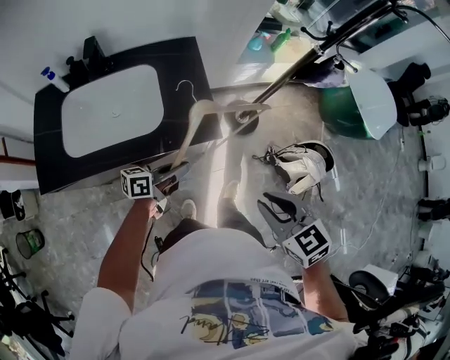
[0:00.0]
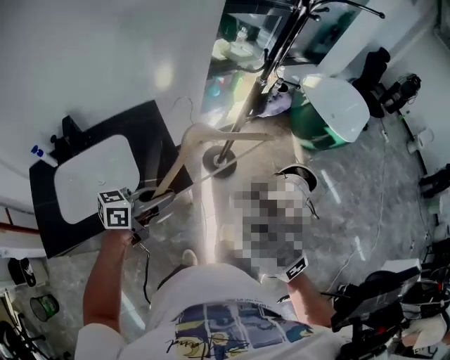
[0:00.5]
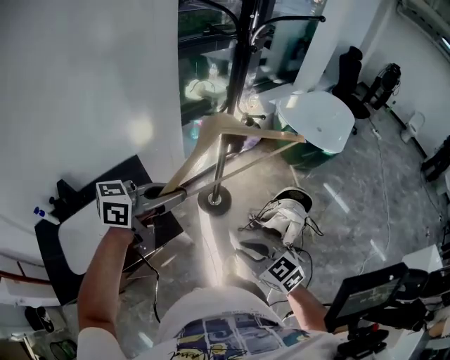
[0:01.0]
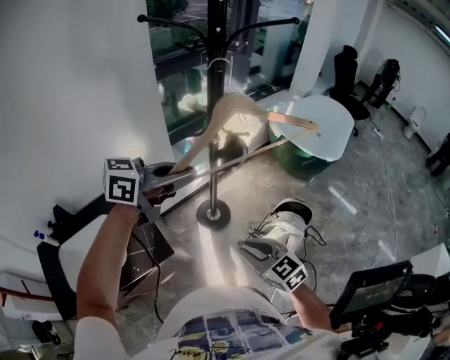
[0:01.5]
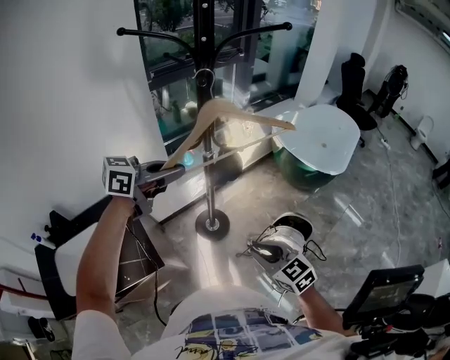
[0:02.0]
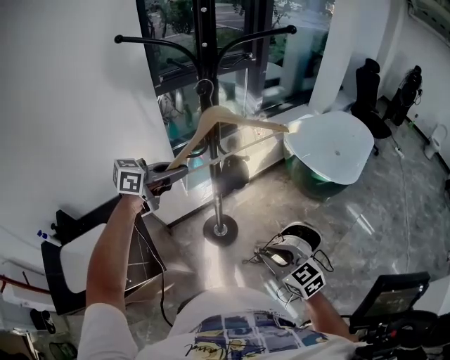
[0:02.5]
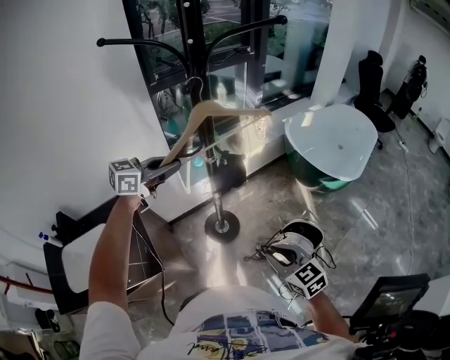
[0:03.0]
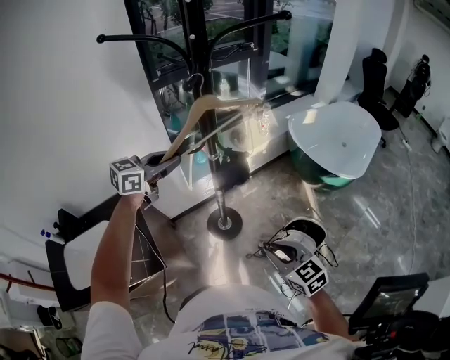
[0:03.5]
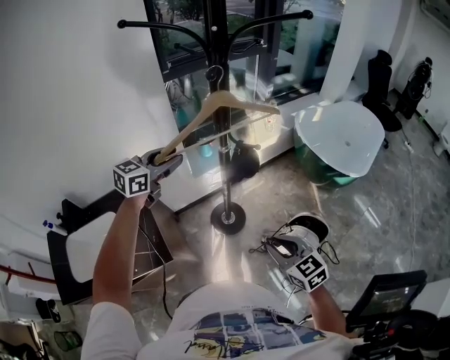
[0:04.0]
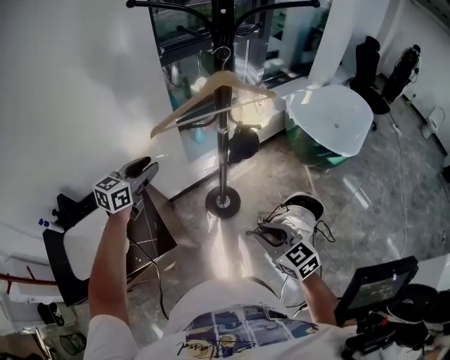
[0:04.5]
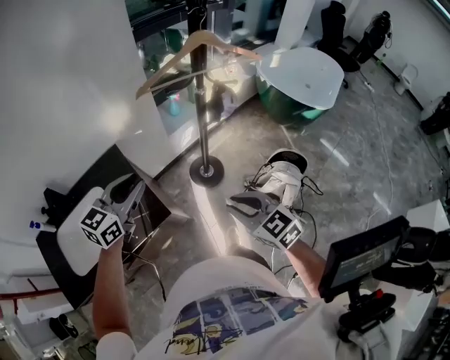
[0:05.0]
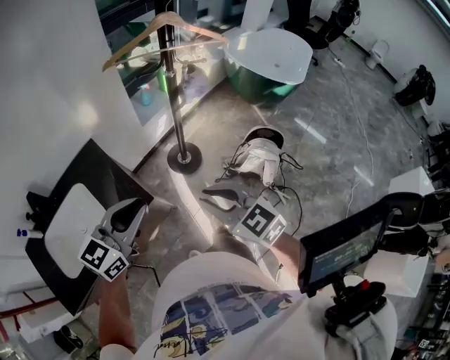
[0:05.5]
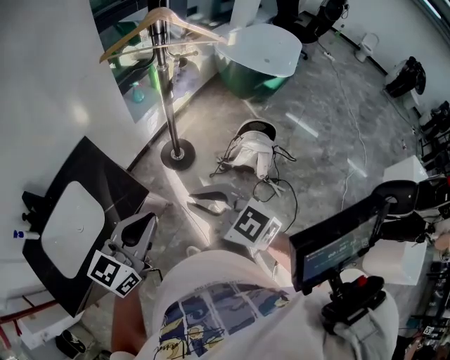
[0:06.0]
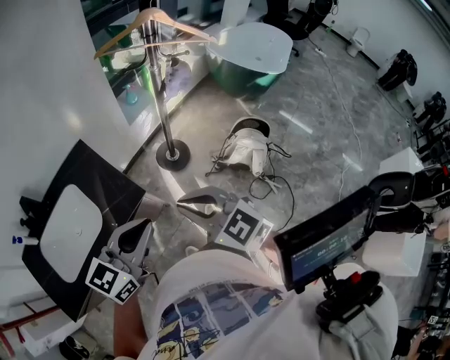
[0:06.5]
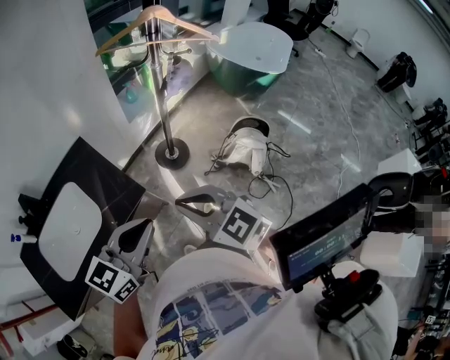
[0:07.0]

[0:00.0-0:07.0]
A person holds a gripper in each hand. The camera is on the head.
0:00.0 to 0:02.0: The right gripper heads forward and to the right, covering roughly 30 cm. Meanwhile the left gripper goes some 50 cm upward, forward and to the right, and rotates about 50 degrees.
0:02.0 to 0:03.5: The right gripper shifts approximately 5 cm forward. Meanwhile the left gripper shifts some 10 cm forward and downward, and rotates some 20 degrees.
0:03.5 to 0:05.0: The left gripper is displaced backward and to the left by about 25 cm; the right gripper travels to the left and backward by roughly 20 cm.
0:05.0 to 0:07.0: The right gripper is displaced backward, to the left and upward by roughly 15 cm, while the left gripper goes approximately 20 cm backward, and closes.

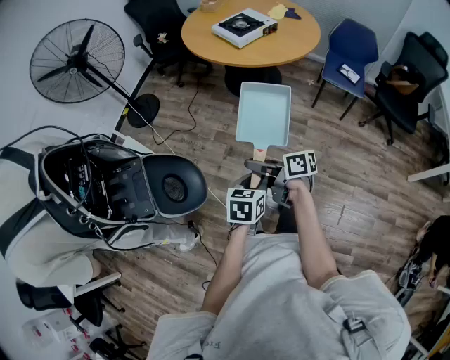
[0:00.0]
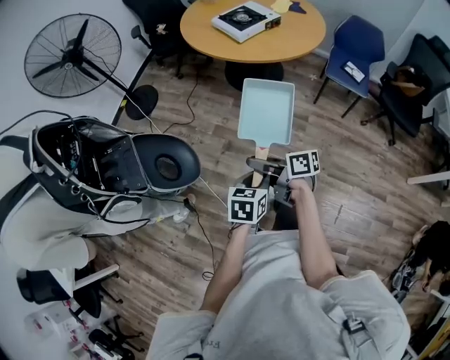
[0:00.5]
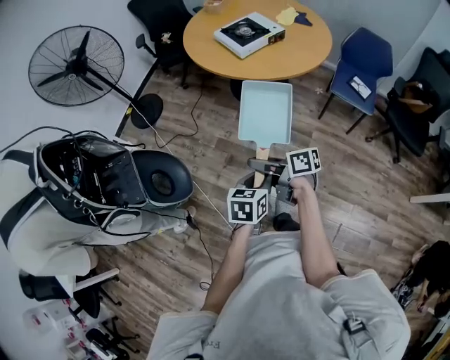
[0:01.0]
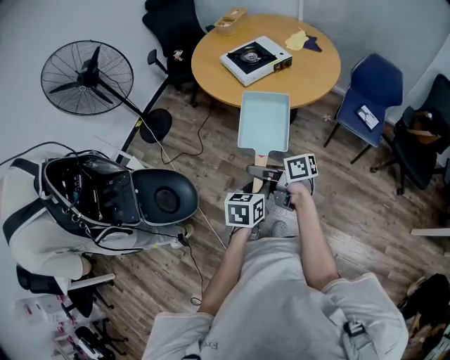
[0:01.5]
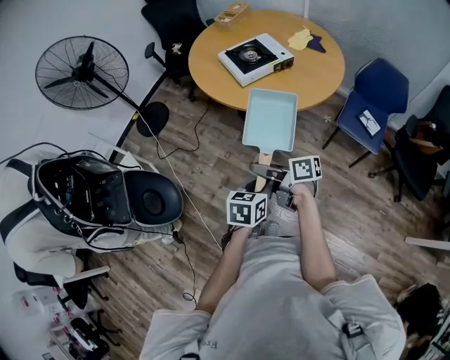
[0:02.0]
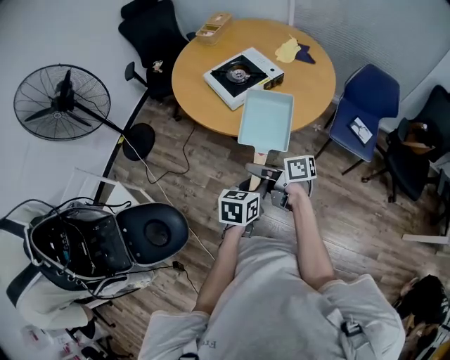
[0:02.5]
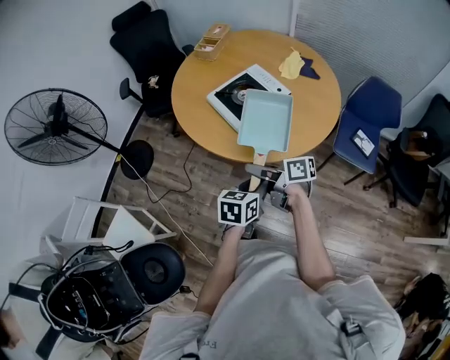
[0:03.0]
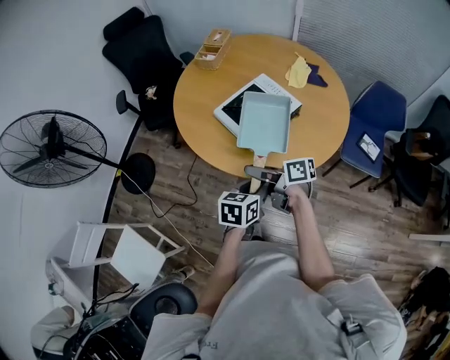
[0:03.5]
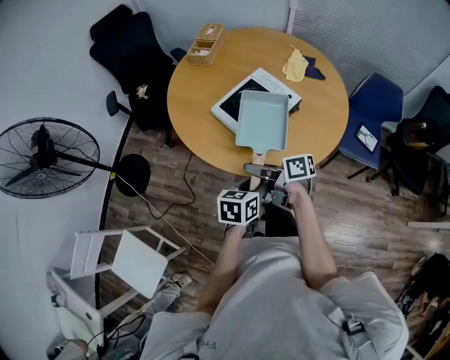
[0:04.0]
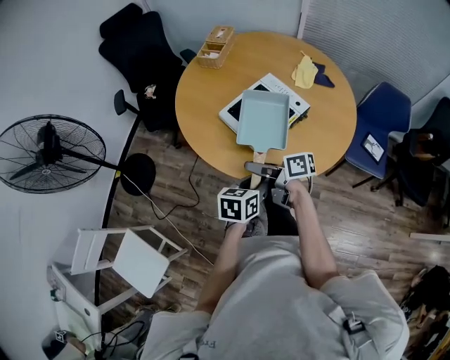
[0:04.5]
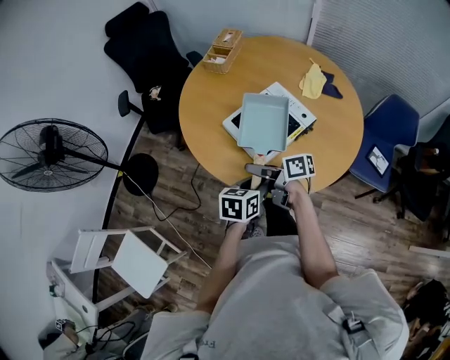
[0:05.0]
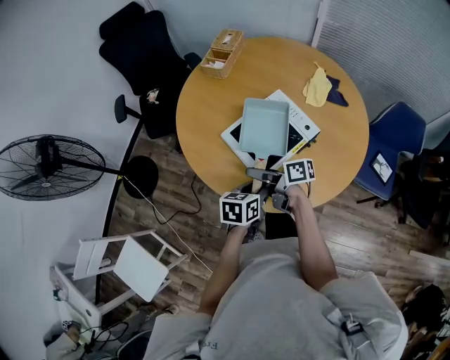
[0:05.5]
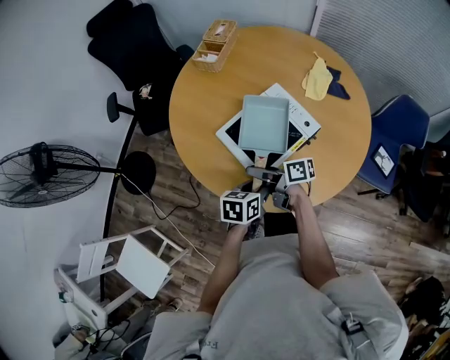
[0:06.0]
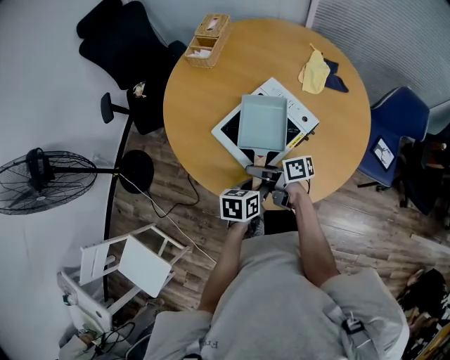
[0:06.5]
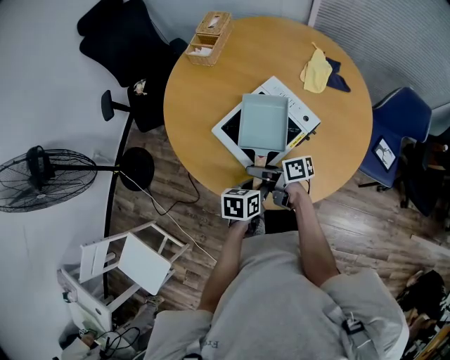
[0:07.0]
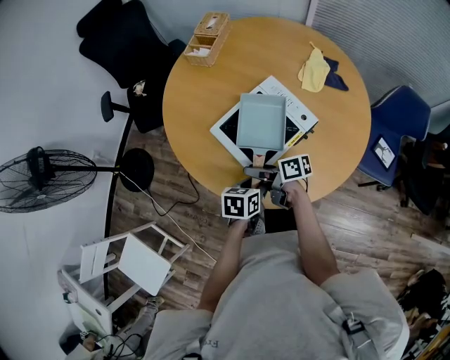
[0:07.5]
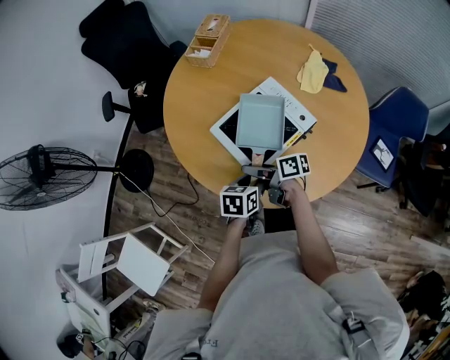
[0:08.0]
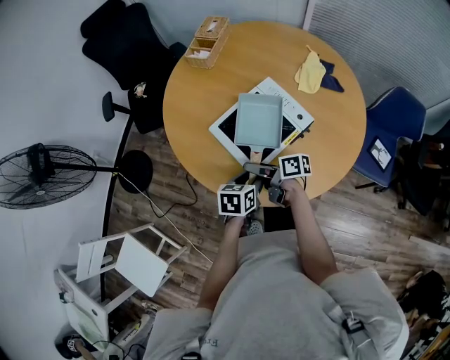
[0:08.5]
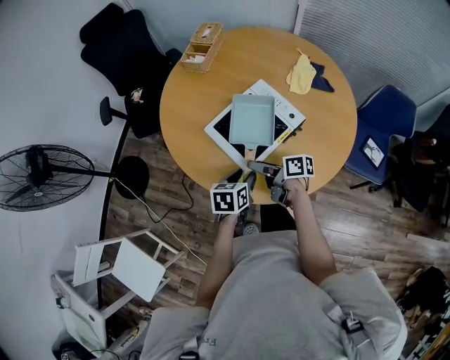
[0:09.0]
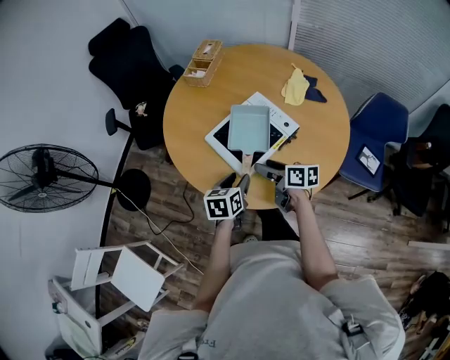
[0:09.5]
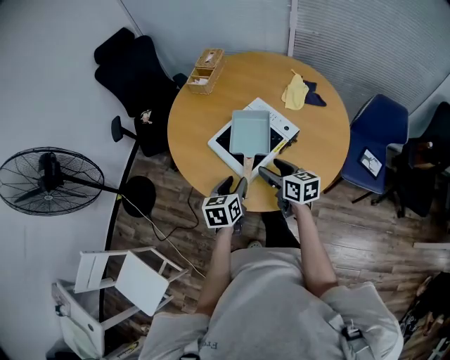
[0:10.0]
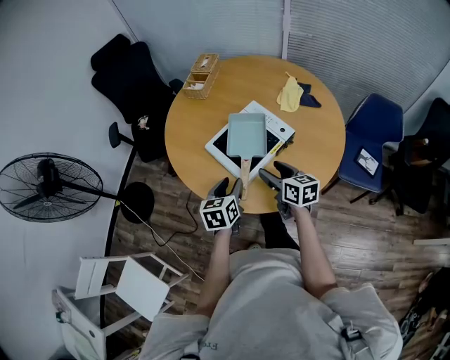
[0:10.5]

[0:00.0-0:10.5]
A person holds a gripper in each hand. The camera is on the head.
0:00.0 to 0:02.0: The right gripper moves forward and to the right, approximately 30 cm; the left gripper travels to the right and forward by roughly 30 cm.
0:02.0 to 0:04.0: Both grippers move forward, some 35 cm.
0:04.0 to 0:06.5: The grippers both shift forward and downward by some 15 cm.
0:06.5 to 0:08.5: There are only small adjustments of the grippers.
0:08.5 to 0:10.5: The right gripper shifts about 15 cm to the right and upward, and turns by approximately 50 degrees; the left gripper is displaced upward by some 10 cm.

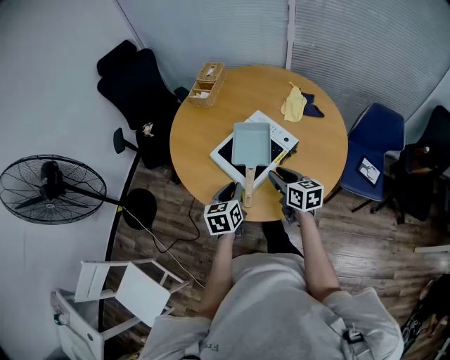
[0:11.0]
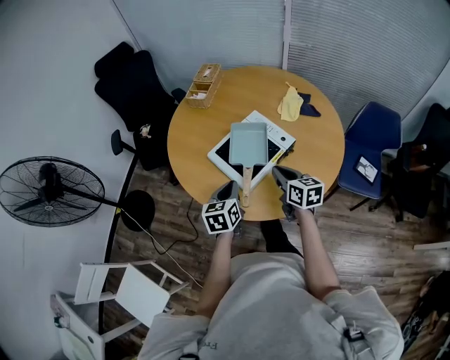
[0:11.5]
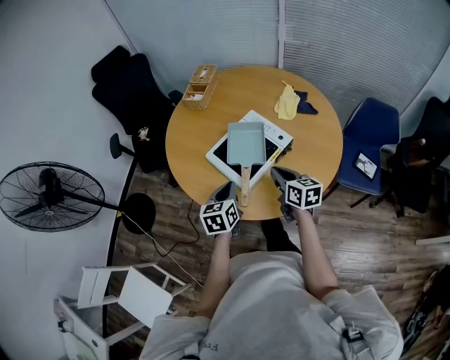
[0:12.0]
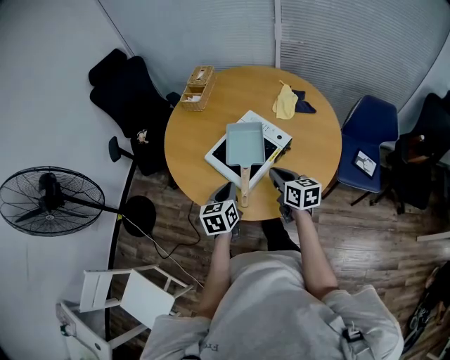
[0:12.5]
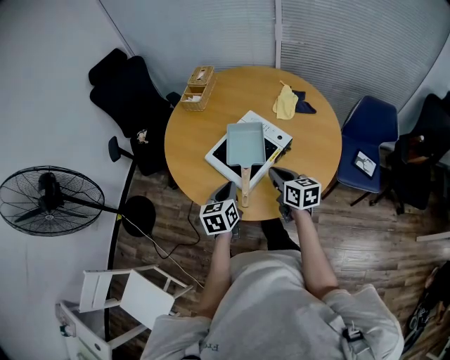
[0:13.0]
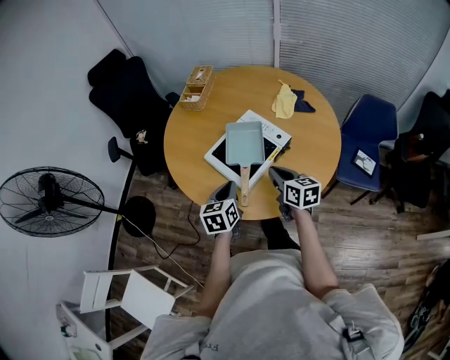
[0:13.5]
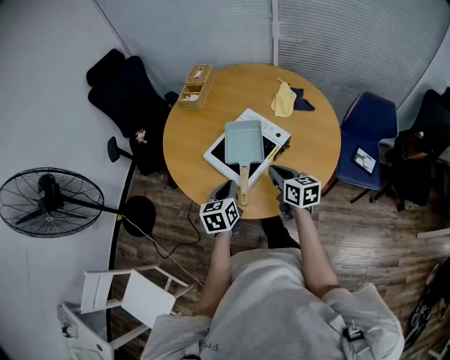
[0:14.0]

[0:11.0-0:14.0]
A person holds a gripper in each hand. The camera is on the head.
0:11.0 to 0:12.5: The right gripper closes its fingers.
0:12.5 to 0:14.0: Neither gripper changes place.

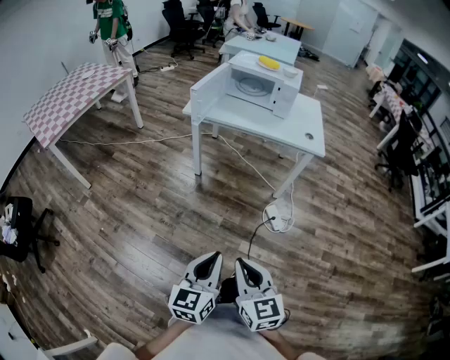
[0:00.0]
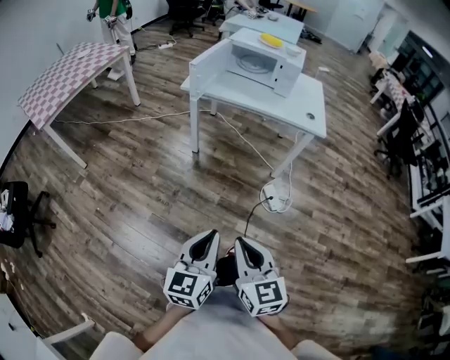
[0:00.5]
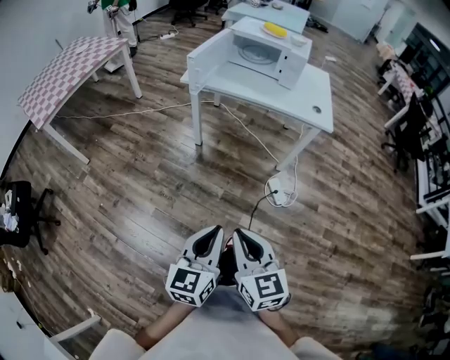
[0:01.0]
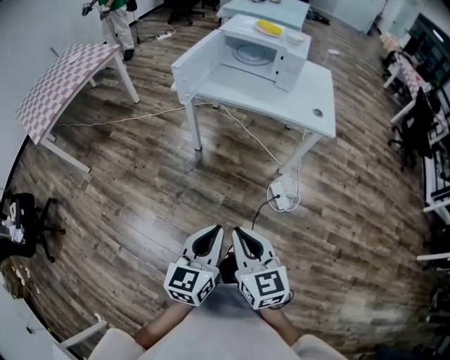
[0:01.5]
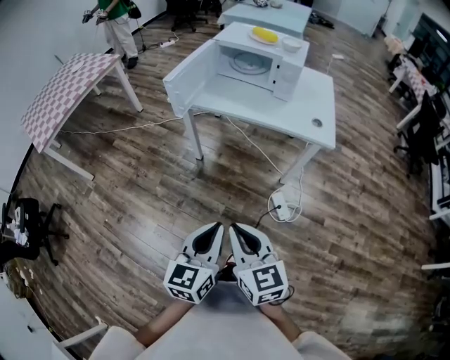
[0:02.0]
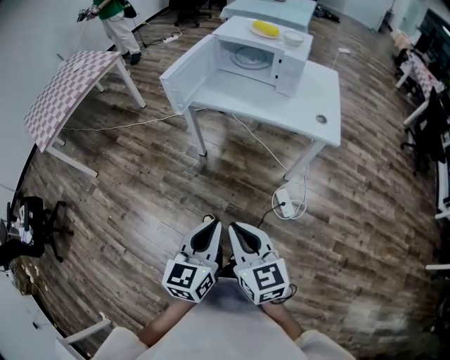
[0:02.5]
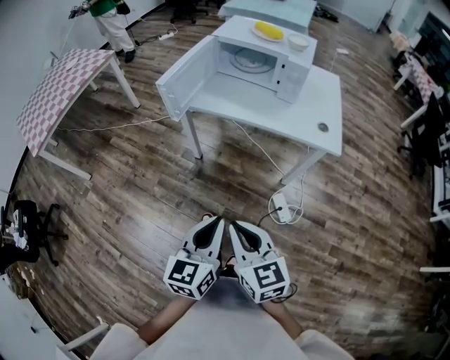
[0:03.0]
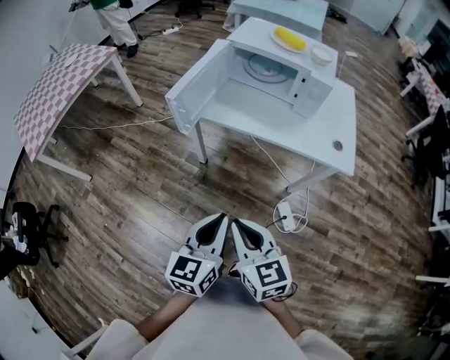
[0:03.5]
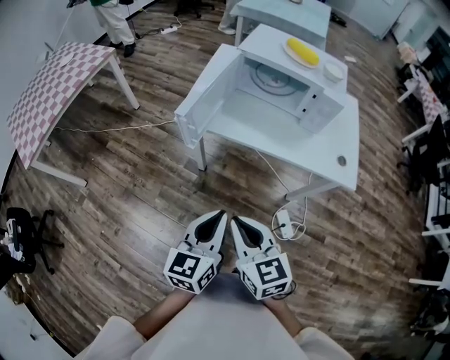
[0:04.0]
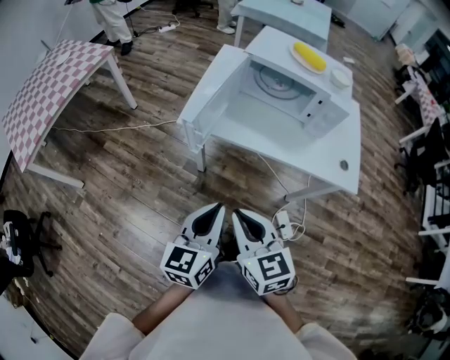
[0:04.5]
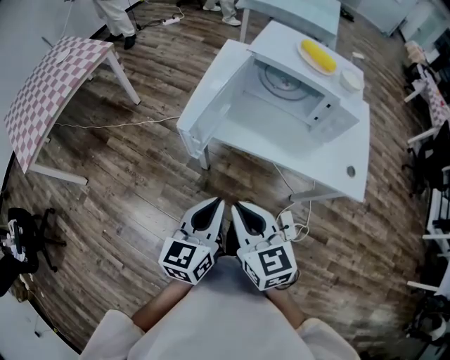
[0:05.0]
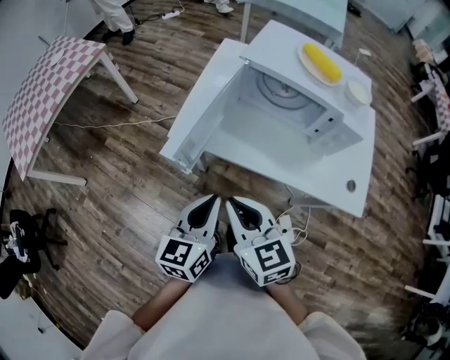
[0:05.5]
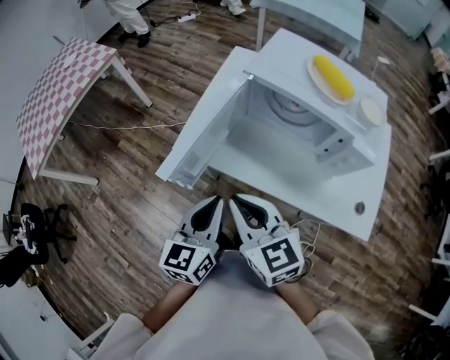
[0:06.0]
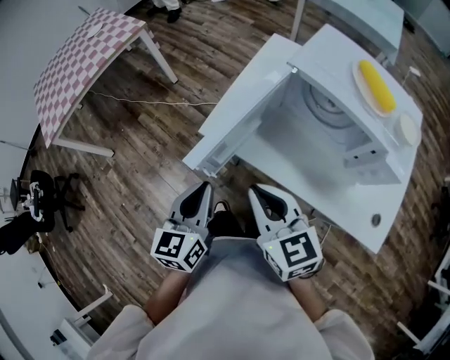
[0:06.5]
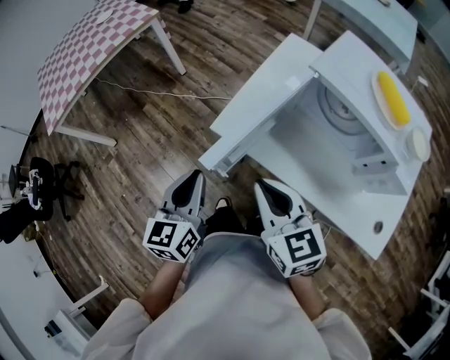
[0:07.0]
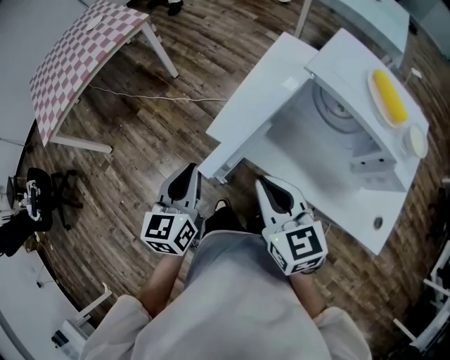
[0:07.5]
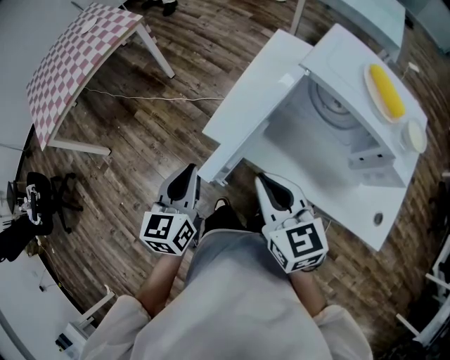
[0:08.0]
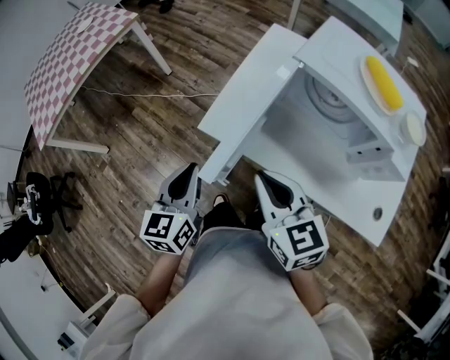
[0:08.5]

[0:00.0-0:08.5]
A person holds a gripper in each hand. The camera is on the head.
0:00.0 to 0:02.0: The left gripper travels forward and to the right by some 20 cm, while the right gripper moves forward, roughly 20 cm.
0:02.0 to 0:04.0: The two grippers go some 25 cm forward.
0:04.0 to 0:06.5: Both grippers move forward, approximately 25 cm. The left gripper swivels about 20 degrees.
0:06.5 to 0:08.5: The left gripper goes approximately 5 cm forward.
